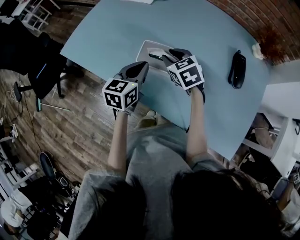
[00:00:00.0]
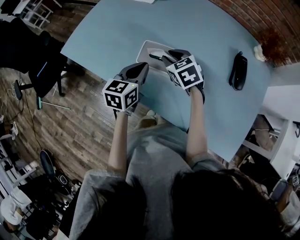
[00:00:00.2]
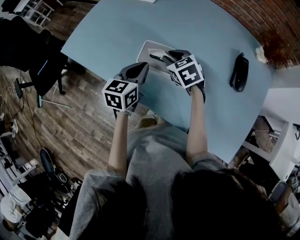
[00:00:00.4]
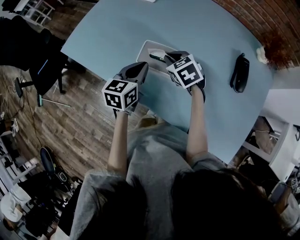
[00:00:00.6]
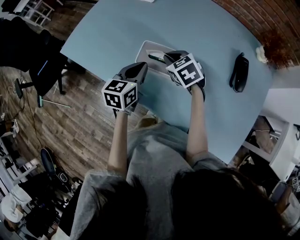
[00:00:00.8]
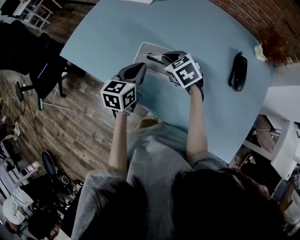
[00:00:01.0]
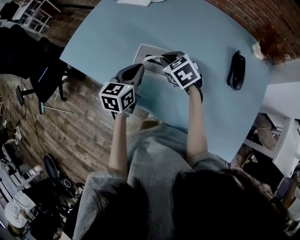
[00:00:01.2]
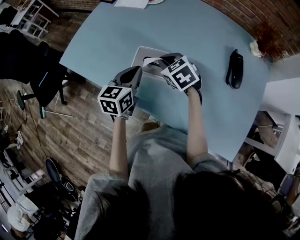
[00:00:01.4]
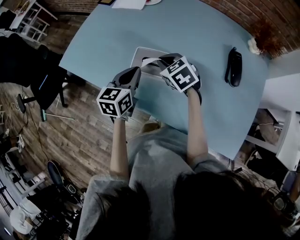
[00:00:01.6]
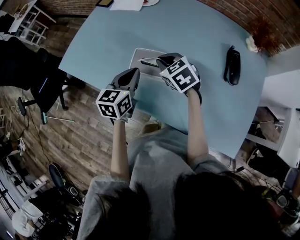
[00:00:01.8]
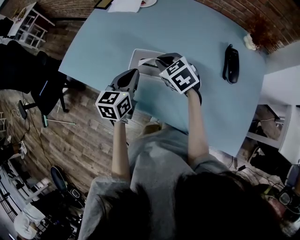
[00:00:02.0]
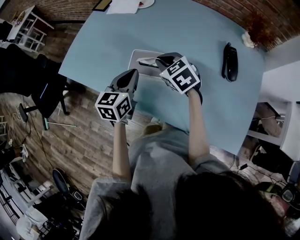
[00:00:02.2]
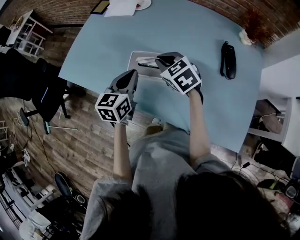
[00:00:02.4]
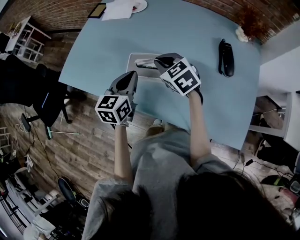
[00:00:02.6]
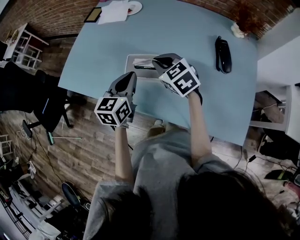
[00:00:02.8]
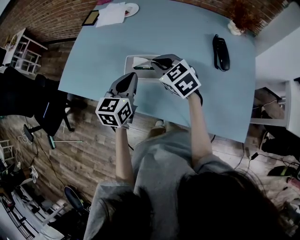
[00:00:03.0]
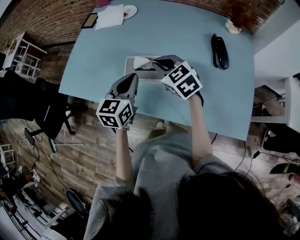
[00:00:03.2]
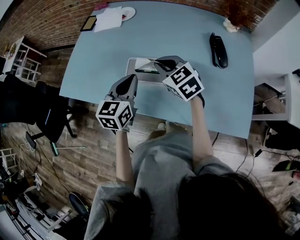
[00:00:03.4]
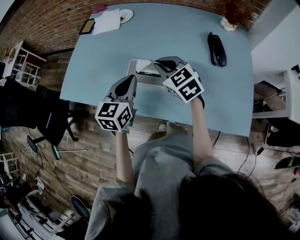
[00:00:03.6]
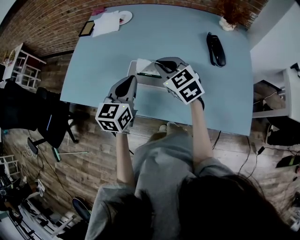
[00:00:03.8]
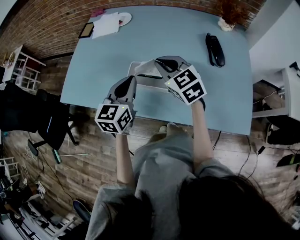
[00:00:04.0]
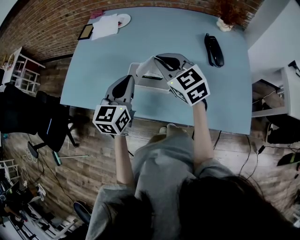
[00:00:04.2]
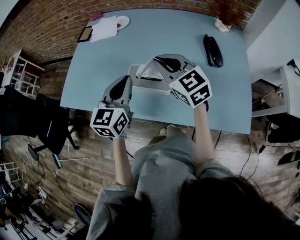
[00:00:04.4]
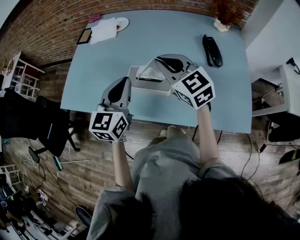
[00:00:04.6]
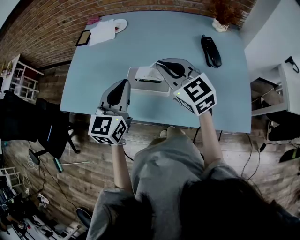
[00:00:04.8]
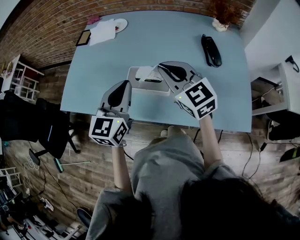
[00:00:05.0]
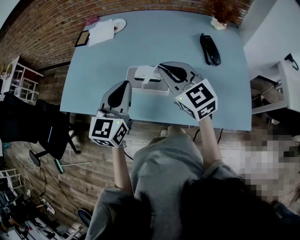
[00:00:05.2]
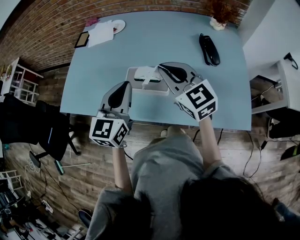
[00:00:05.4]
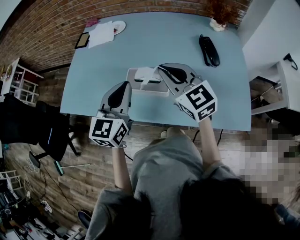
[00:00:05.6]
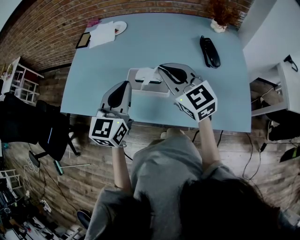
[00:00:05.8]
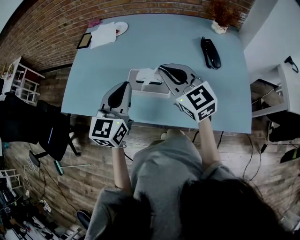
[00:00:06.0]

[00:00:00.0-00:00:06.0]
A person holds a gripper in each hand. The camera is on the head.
00:00:00.0 to 00:00:01.6: The right gripper closes.
00:00:01.6 to 00:00:03.0: The left gripper shifts by roughly 5 cm, while the right gripper goes some 5 cm upward.
00:00:03.0 to 00:00:04.4: Both grippers move upward, roughly 5 cm.
00:00:04.4 to 00:00:06.0: The grippers make only small movements.

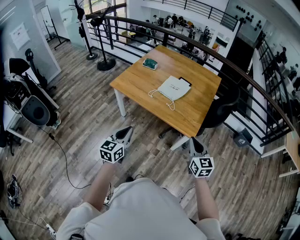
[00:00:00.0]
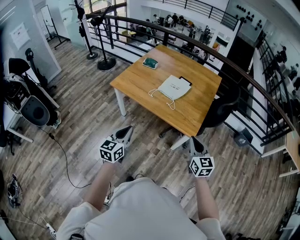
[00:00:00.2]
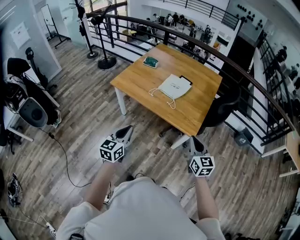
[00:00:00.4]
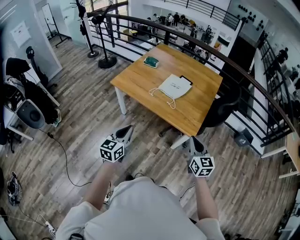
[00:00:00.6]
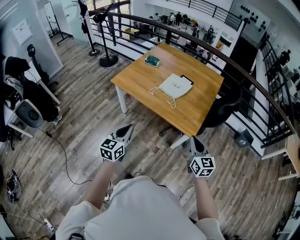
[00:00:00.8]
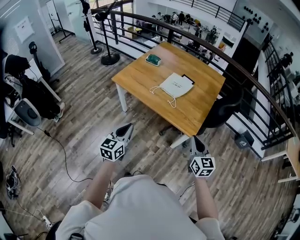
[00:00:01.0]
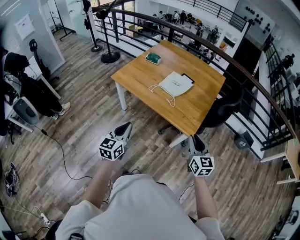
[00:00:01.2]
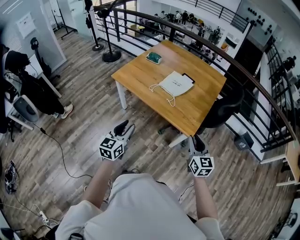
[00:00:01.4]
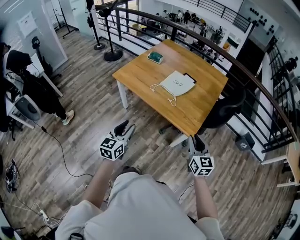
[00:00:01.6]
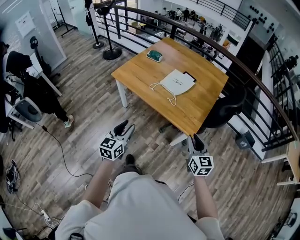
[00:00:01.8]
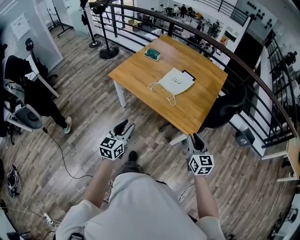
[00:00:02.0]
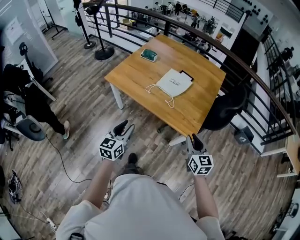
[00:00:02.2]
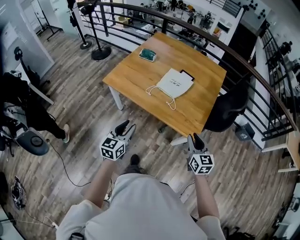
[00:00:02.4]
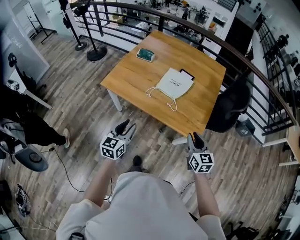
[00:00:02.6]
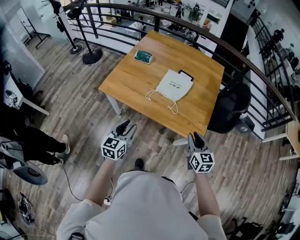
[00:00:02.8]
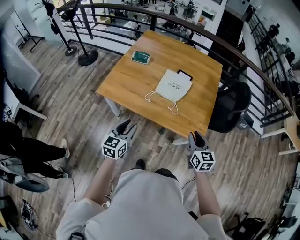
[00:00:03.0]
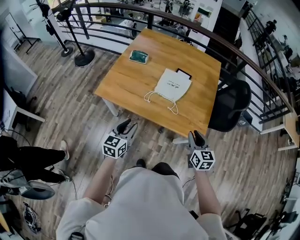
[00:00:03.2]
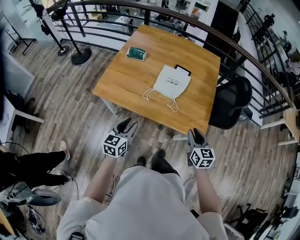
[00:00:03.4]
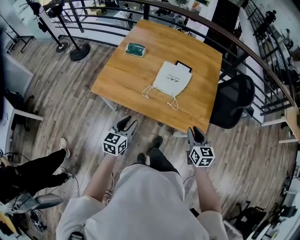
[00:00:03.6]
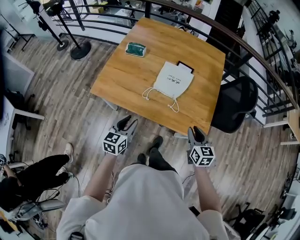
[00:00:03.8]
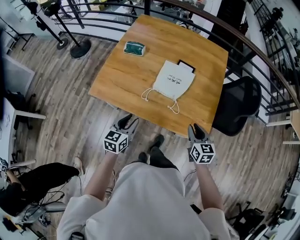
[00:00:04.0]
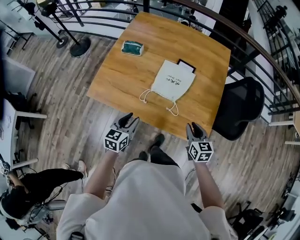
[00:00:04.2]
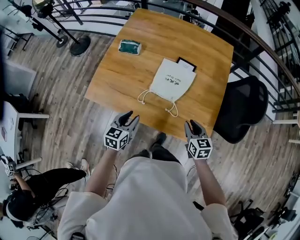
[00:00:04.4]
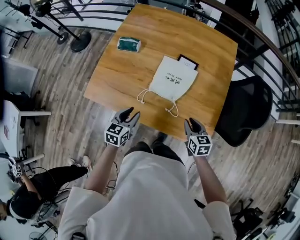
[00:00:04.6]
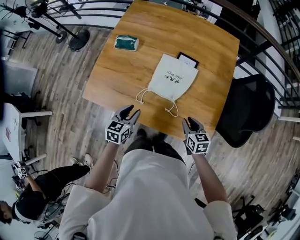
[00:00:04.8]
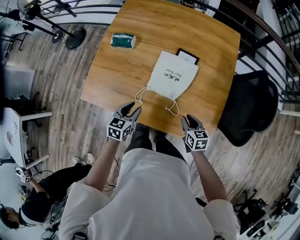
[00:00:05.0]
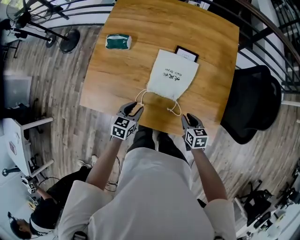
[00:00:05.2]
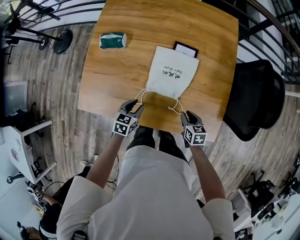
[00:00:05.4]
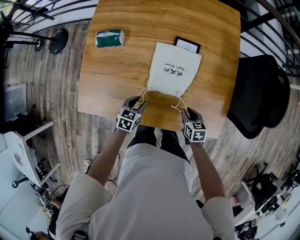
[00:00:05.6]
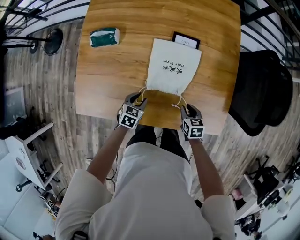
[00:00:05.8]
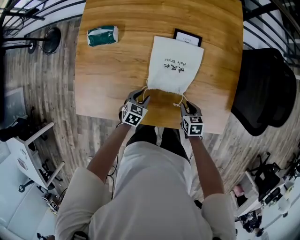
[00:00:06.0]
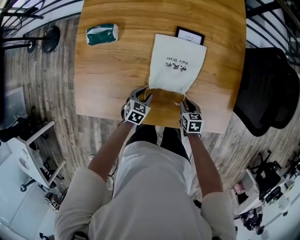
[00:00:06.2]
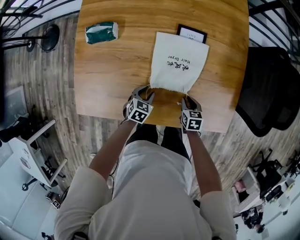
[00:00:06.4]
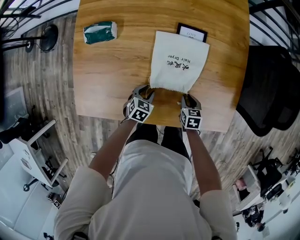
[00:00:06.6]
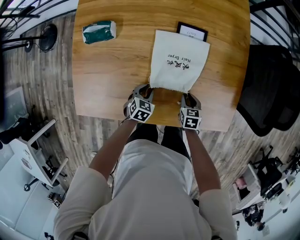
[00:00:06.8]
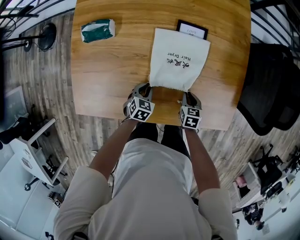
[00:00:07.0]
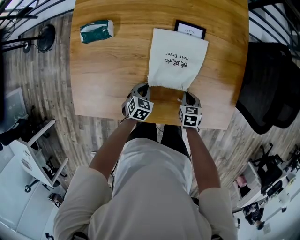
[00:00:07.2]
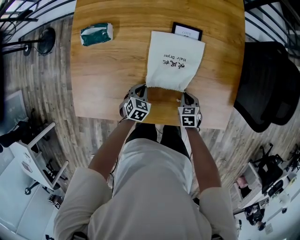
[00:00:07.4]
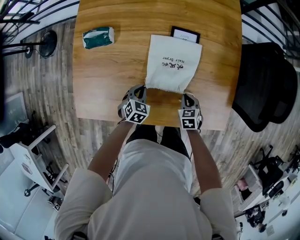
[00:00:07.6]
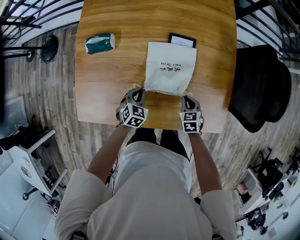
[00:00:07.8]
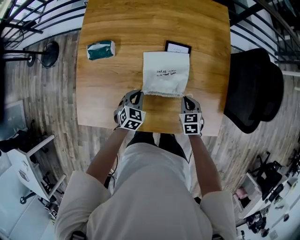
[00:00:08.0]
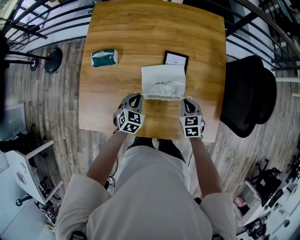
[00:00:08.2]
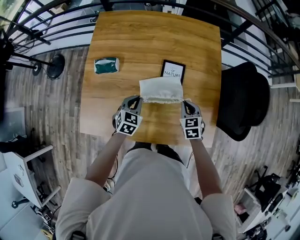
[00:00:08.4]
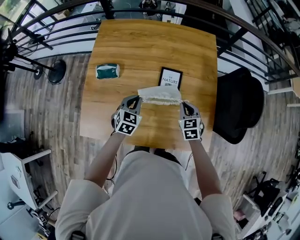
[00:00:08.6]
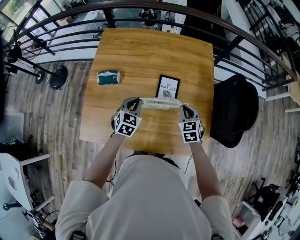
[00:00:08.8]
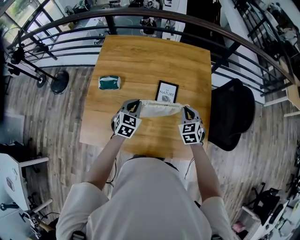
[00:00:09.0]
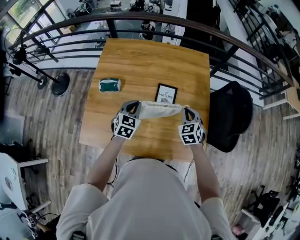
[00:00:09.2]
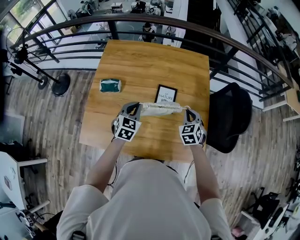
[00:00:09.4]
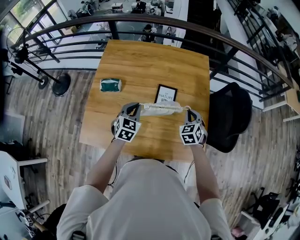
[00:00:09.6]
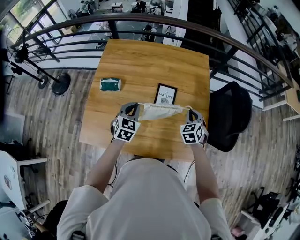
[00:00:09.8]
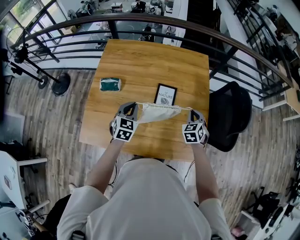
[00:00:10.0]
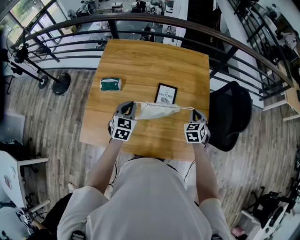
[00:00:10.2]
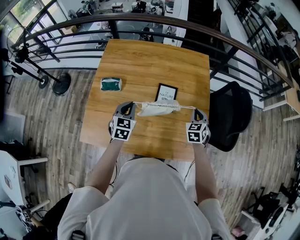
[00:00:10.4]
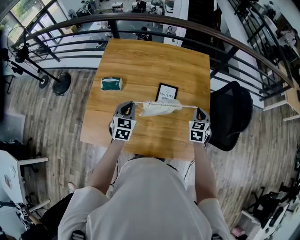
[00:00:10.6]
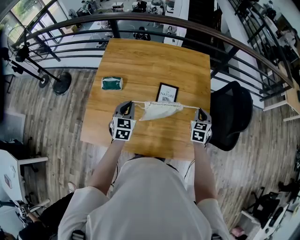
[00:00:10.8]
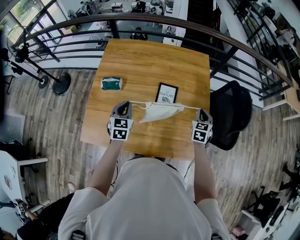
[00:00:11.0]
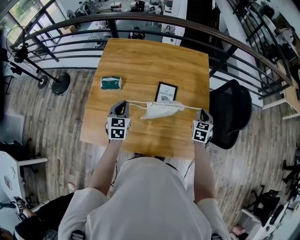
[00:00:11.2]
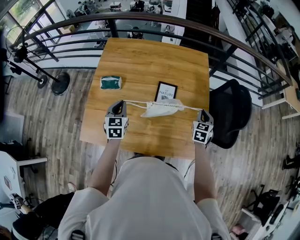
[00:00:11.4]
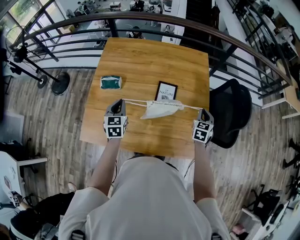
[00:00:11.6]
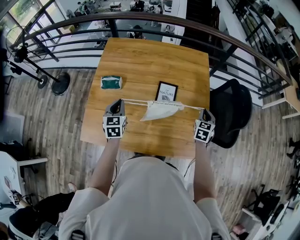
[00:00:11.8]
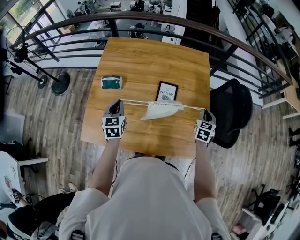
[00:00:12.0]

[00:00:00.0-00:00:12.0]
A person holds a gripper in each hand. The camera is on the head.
00:00:00.0 to 00:00:01.6: The right gripper opens up. Meanwhile the left gripper opens up.
00:00:01.6 to 00:00:03.0: The left gripper shifts some 25 cm forward, while the right gripper moves forward and to the left, roughly 20 cm.
00:00:03.0 to 00:00:04.4: The two grippers go some 20 cm forward and downward.
00:00:04.4 to 00:00:06.0: The left gripper goes some 25 cm downward and forward, and changes its angle by about 40 degrees. Meanwhile the right gripper is displaced downward by approximately 20 cm, and rotates about 30 degrees.
00:00:06.0 to 00:00:07.6: The left gripper closes.
00:00:07.6 to 00:00:09.0: Both grippers travel together upward, approximately 25 cm. The left gripper changes its angle by about 20 degrees. The right gripper changes its angle by approximately 30 degrees.
00:00:09.0 to 00:00:10.4: The right gripper moves to the right, approximately 5 cm.
00:00:10.4 to 00:00:12.0: The right gripper is displaced to the right by roughly 5 cm; the left gripper is displaced to the left by about 5 cm.

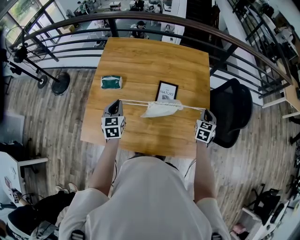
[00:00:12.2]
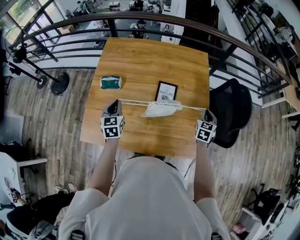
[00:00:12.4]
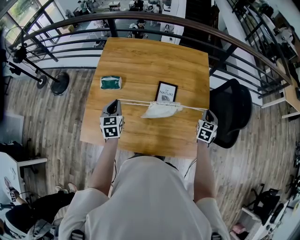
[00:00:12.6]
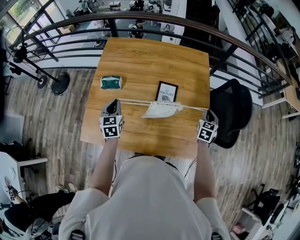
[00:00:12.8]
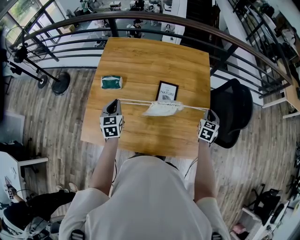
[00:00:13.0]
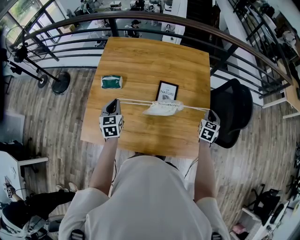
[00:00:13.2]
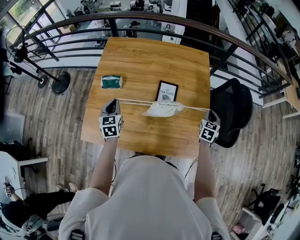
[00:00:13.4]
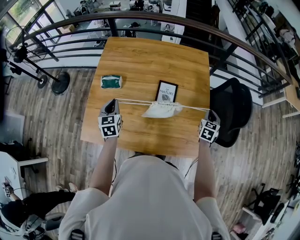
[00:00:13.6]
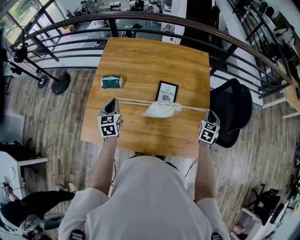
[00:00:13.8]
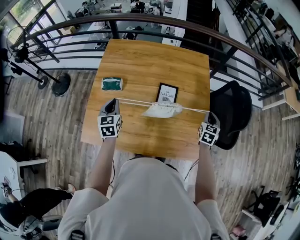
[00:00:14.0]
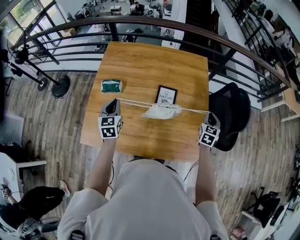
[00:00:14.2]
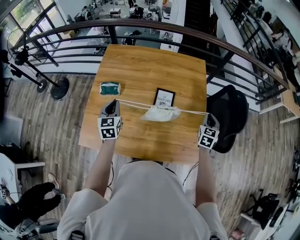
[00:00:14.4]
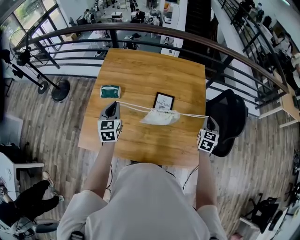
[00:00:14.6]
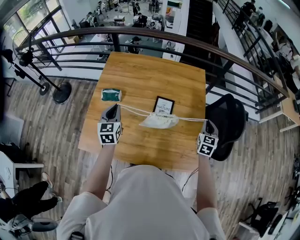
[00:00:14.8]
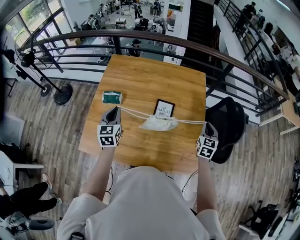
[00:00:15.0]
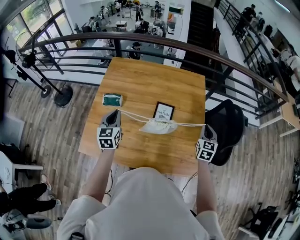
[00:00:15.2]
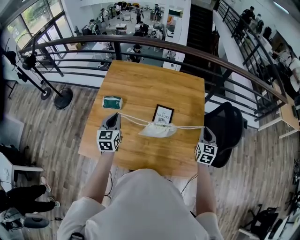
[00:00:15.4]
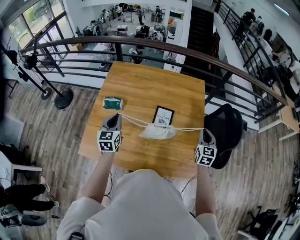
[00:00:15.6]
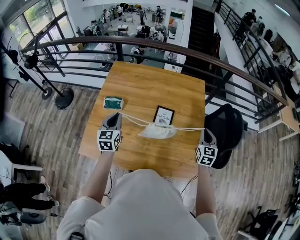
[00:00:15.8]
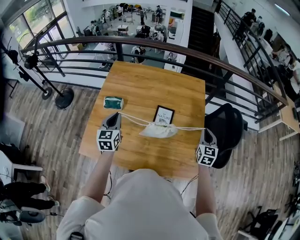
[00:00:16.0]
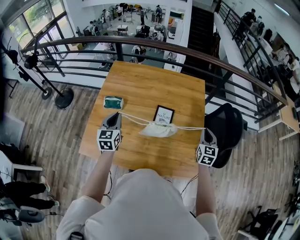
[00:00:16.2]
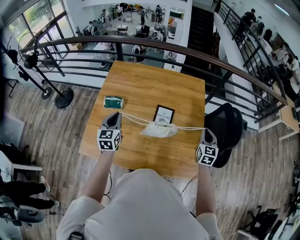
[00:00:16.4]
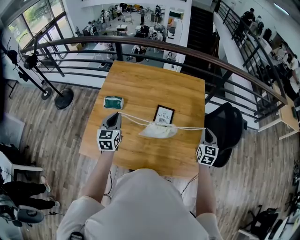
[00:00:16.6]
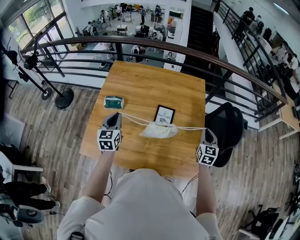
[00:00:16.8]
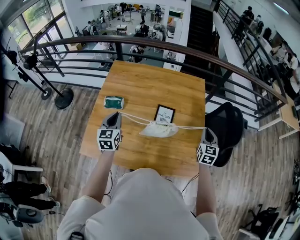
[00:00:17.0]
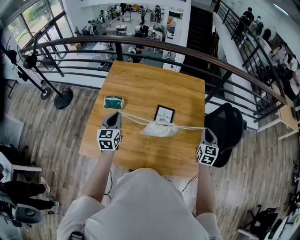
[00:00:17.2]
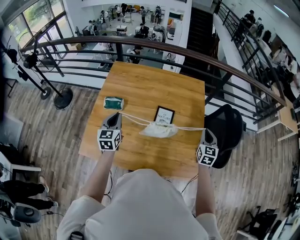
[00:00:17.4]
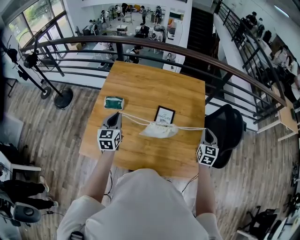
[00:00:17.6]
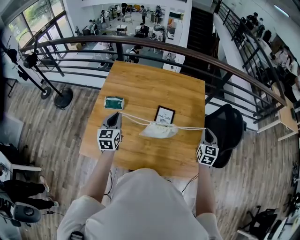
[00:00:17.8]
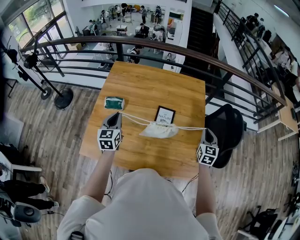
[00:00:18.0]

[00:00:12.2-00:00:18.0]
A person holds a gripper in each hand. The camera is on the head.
00:00:12.2 to 00:00:13.6: There are only small adjustments of the grippers.
00:00:13.6 to 00:00:15.0: Both grippers travel together upward, roughly 5 cm.
00:00:15.0 to 00:00:16.6: The grippers stay close to where they were, moving slightly.
00:00:16.6 to 00:00:18.0: Neither gripper changes place.
